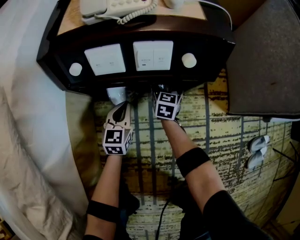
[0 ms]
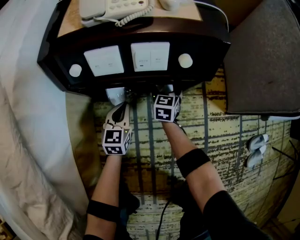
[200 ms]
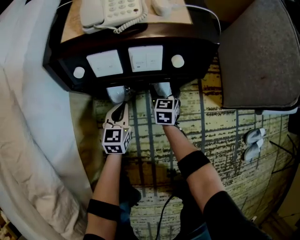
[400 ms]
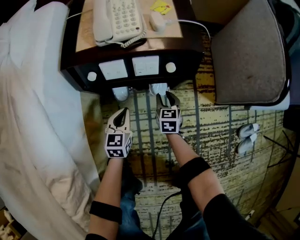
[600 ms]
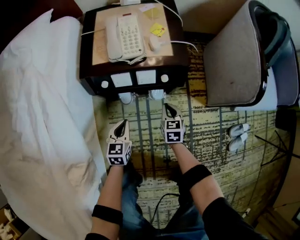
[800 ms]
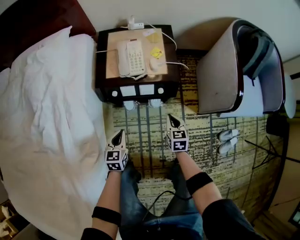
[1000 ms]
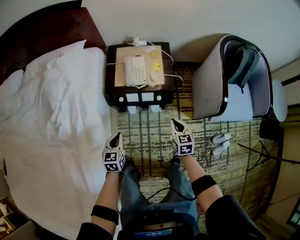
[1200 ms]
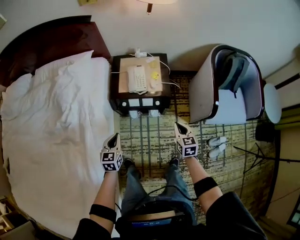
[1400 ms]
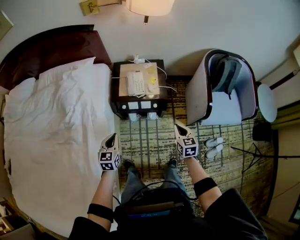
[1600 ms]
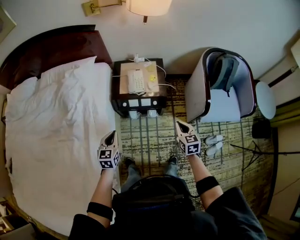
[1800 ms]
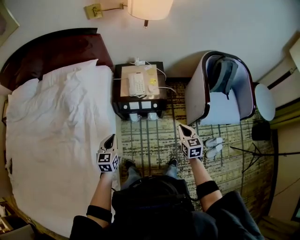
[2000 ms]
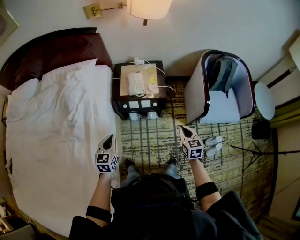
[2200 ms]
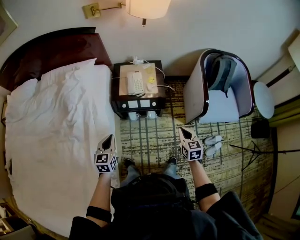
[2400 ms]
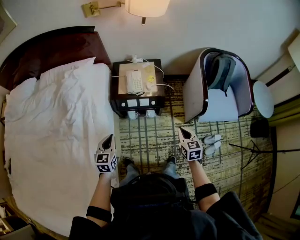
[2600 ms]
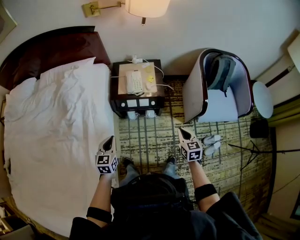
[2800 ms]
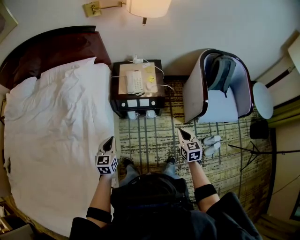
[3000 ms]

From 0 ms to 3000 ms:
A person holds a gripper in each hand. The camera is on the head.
From 0 ms to 1600 ms: Both grippers travel together upward, about 70 cm. The right gripper closes up.
From 1600 ms to 3000 ms: Both grippers move backward, some 5 cm.

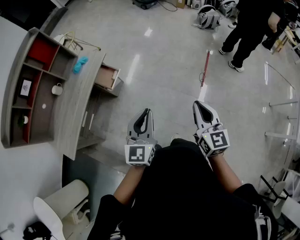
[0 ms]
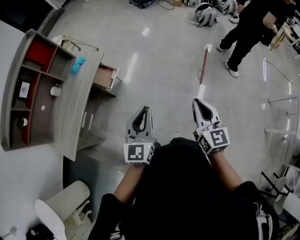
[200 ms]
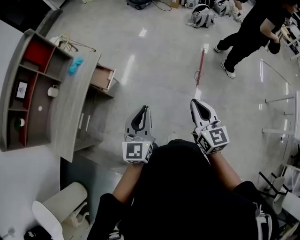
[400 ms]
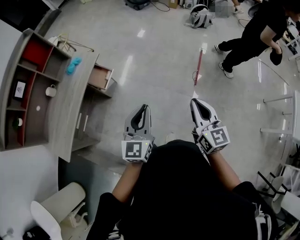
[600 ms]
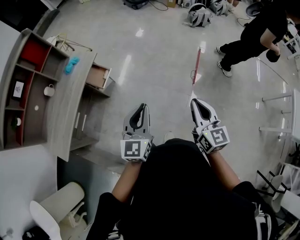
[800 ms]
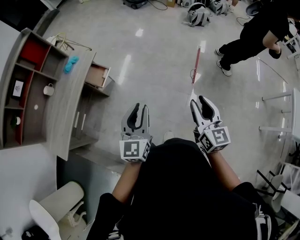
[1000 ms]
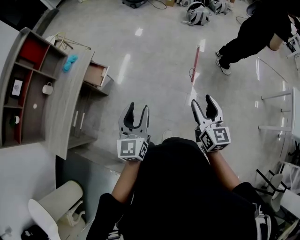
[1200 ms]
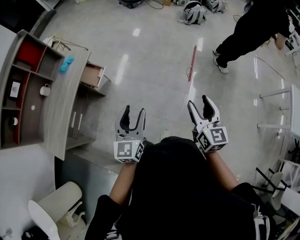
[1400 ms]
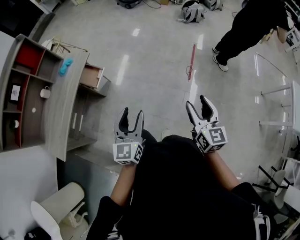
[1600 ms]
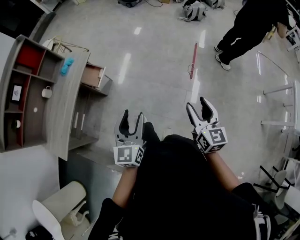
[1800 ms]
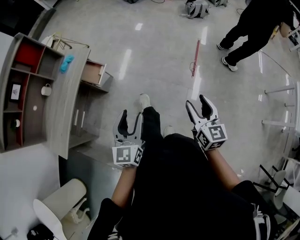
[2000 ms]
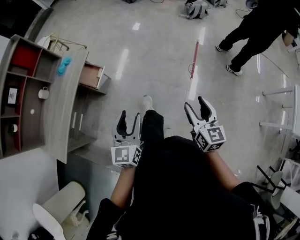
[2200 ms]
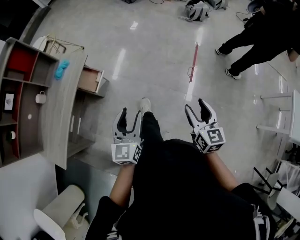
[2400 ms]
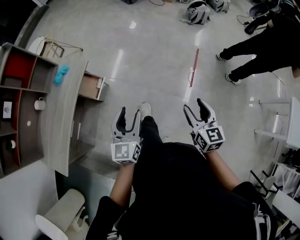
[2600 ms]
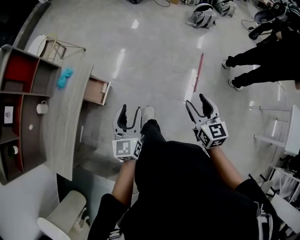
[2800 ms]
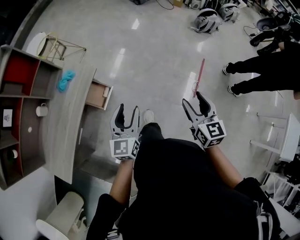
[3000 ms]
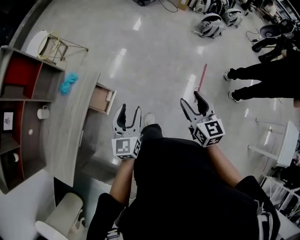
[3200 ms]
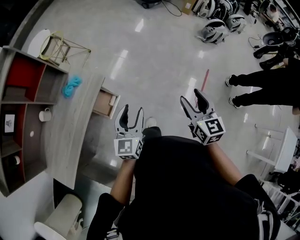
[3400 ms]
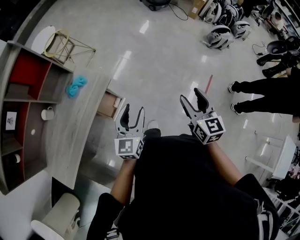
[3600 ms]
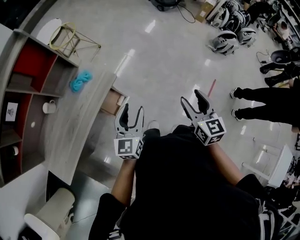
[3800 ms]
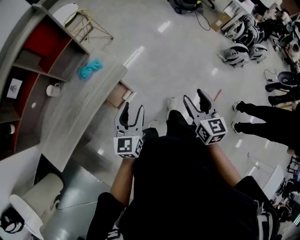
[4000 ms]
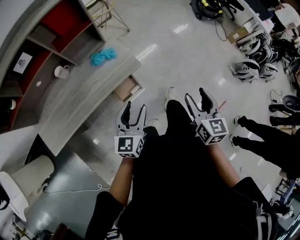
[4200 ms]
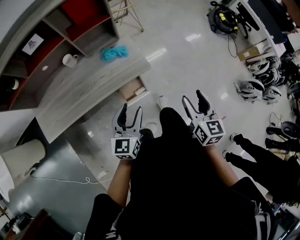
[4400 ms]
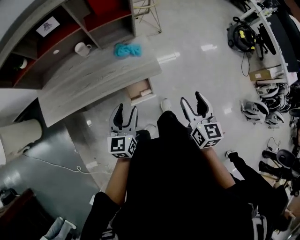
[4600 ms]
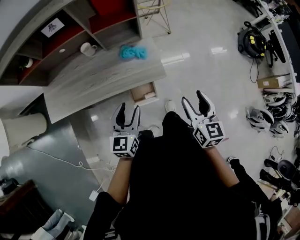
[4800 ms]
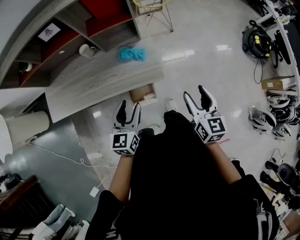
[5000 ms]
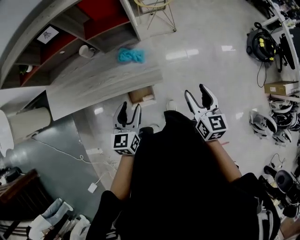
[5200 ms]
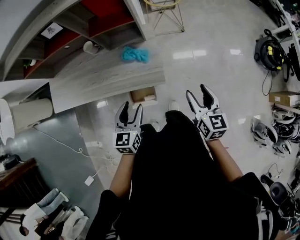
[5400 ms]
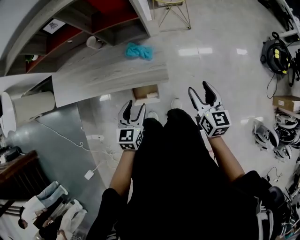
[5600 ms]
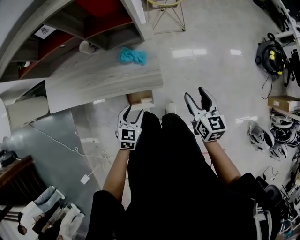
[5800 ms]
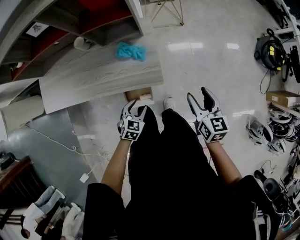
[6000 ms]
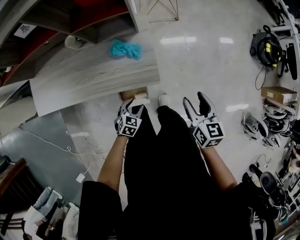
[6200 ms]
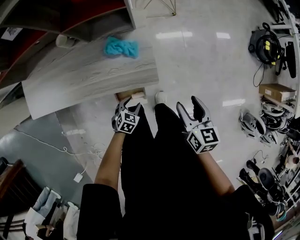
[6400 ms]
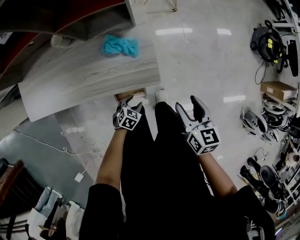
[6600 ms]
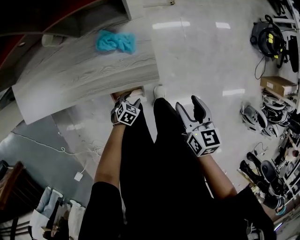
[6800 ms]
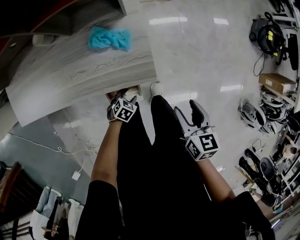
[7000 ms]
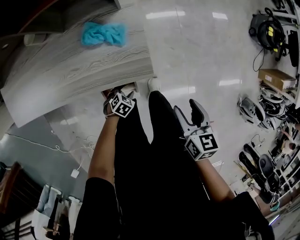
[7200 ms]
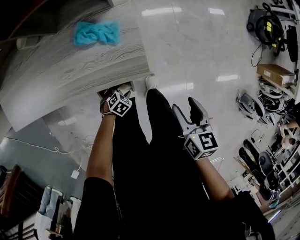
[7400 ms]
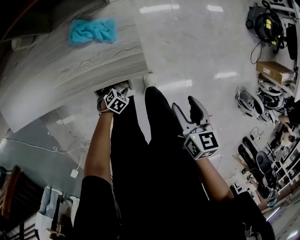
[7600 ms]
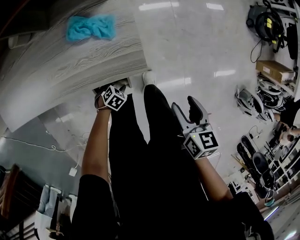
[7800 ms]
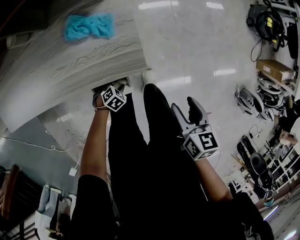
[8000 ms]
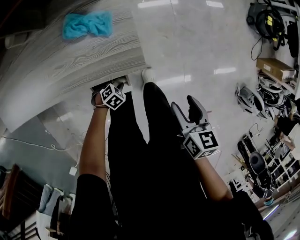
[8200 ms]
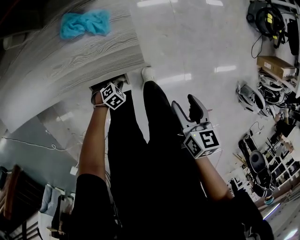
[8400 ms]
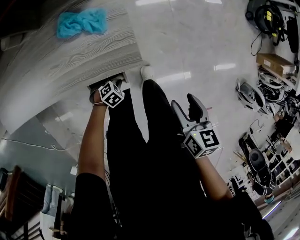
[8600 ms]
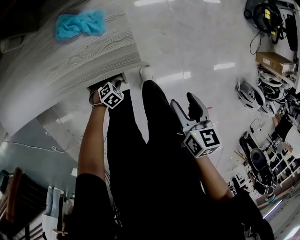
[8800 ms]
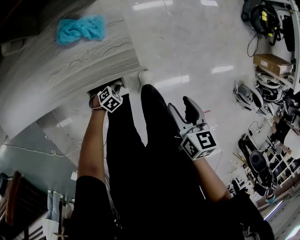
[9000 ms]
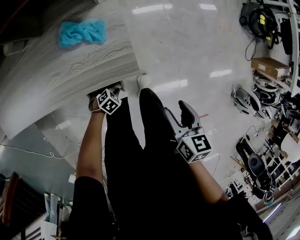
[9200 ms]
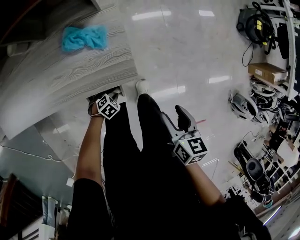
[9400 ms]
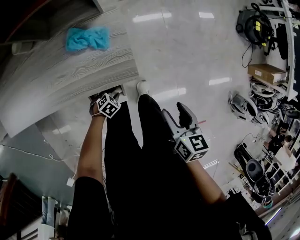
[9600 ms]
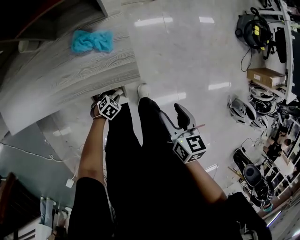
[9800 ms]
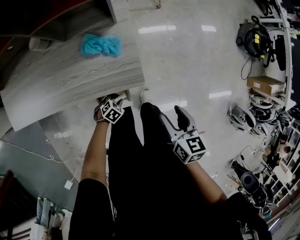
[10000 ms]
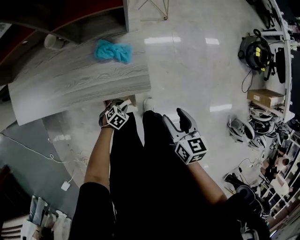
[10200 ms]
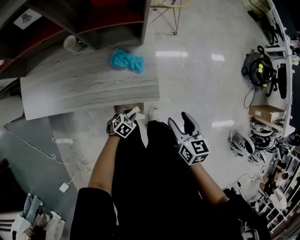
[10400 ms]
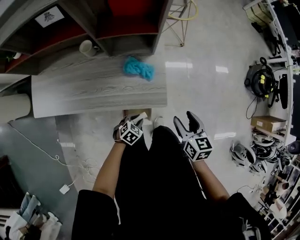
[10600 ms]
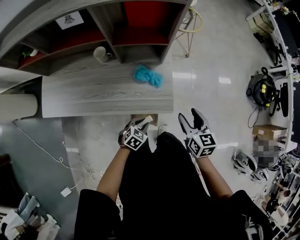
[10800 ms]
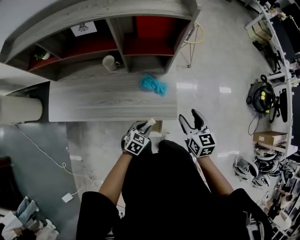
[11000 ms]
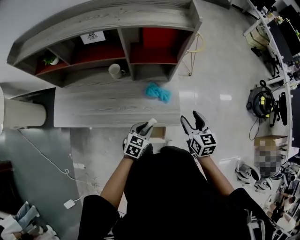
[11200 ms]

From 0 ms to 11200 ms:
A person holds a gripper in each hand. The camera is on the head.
From 0 ms to 1600 ms: The left gripper ends up approximately 5 cm from where it was, and opens. Meanwhile the right gripper travels to the right and backward by about 10 cm, and opens.
From 1600 ms to 3200 ms: The two grippers travel together, forward and to the left, some 50 cm.
From 3200 ms to 4800 ms: The left gripper moves some 25 cm, and changes its angle by some 50 degrees, while the right gripper shifts by some 40 cm, and swivels about 50 degrees.
From 4800 ms to 6400 ms: The left gripper goes approximately 35 cm downward, and points its fingers roughly 40 degrees further downward; the right gripper goes about 20 cm downward and forward.
From 6400 ms to 8000 ms: The right gripper heads downward, covering about 15 cm; the left gripper shifts some 20 cm downward, and swivels about 30 degrees.
From 8000 ms to 9600 ms: The left gripper closes its fingers.
From 9600 ms to 11200 ms: The left gripper is displaced upward by about 40 cm, and tilts its fingers some 30 degrees upward, while the right gripper heads upward, covering some 20 cm, and rotates some 30 degrees.

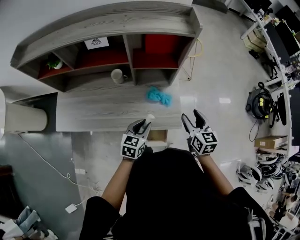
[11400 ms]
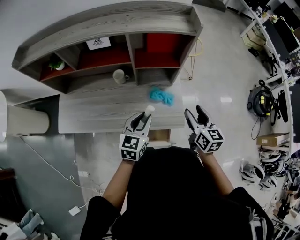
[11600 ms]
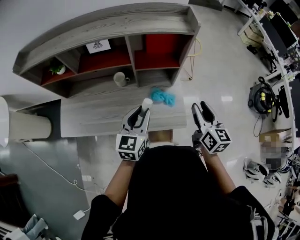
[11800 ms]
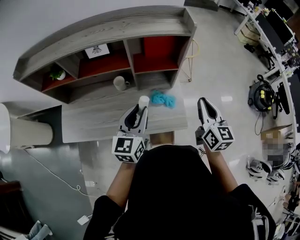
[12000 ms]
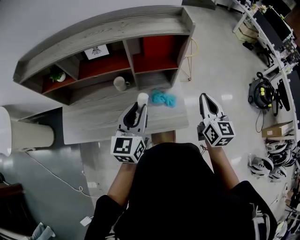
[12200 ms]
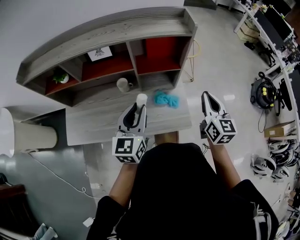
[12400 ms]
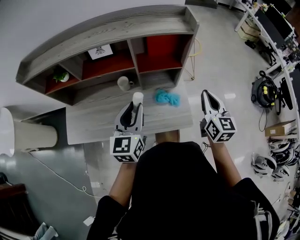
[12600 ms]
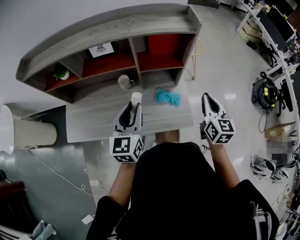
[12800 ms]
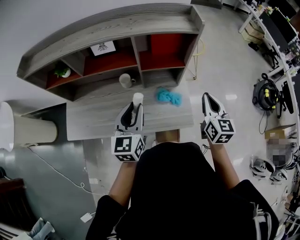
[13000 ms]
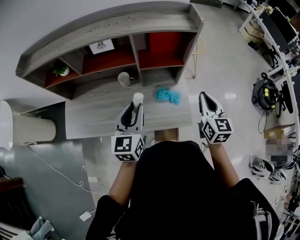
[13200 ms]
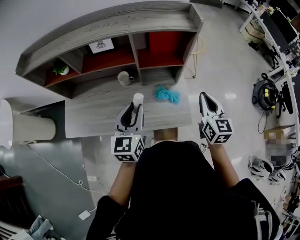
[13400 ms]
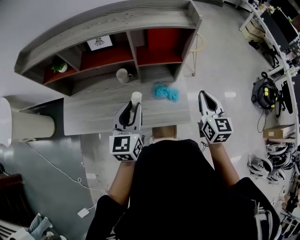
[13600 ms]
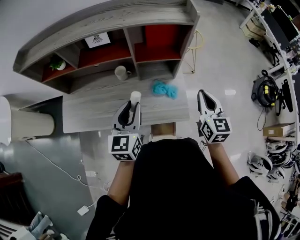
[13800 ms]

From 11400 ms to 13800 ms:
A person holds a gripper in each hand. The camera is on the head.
From 11400 ms to 12600 ms: The left gripper heads upward and to the left, covering roughly 20 cm, and rotates approximately 30 degrees; the right gripper moves upward, approximately 10 cm, and closes.
From 12600 ms to 13800 ms: The grippers move only a little.

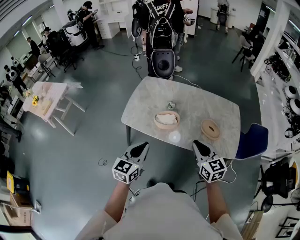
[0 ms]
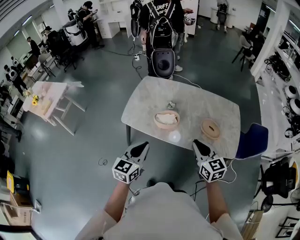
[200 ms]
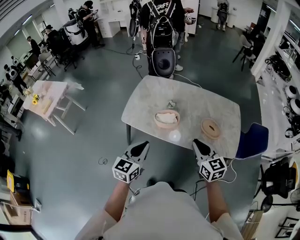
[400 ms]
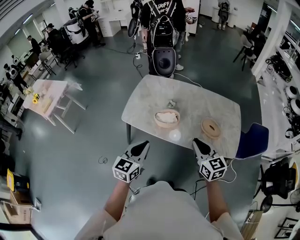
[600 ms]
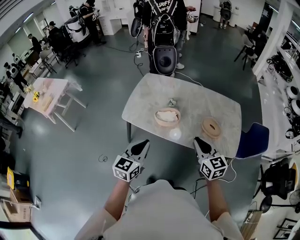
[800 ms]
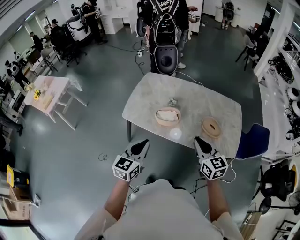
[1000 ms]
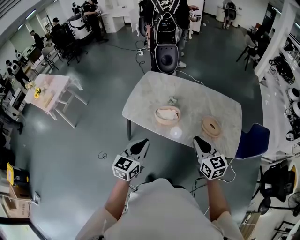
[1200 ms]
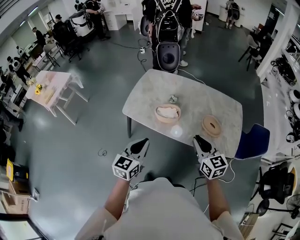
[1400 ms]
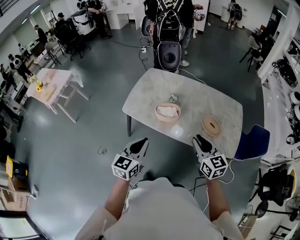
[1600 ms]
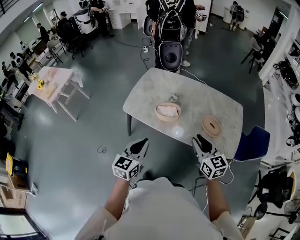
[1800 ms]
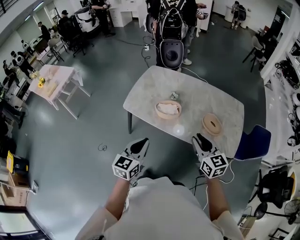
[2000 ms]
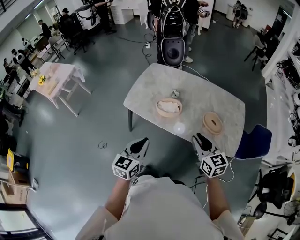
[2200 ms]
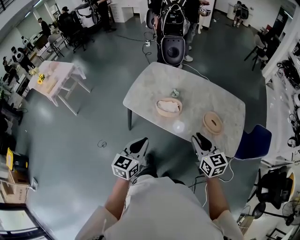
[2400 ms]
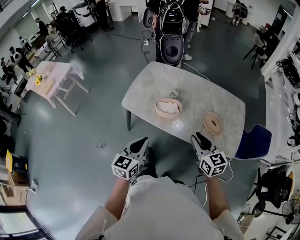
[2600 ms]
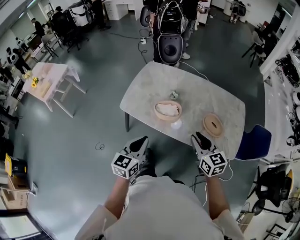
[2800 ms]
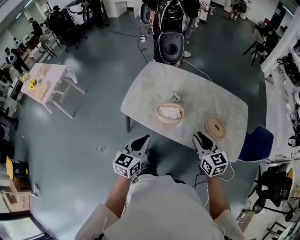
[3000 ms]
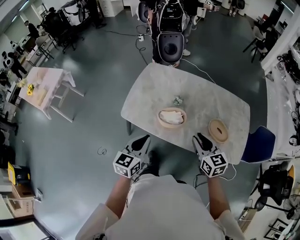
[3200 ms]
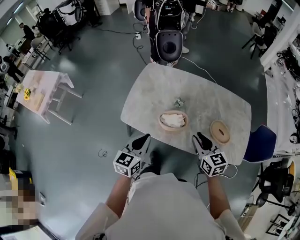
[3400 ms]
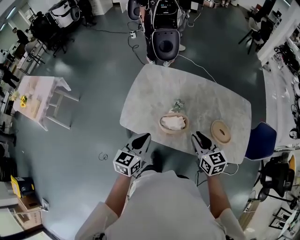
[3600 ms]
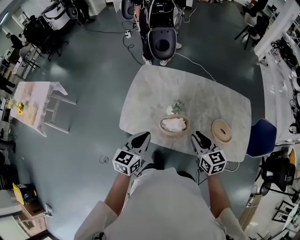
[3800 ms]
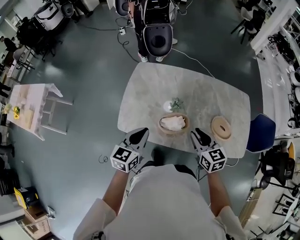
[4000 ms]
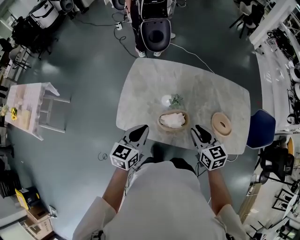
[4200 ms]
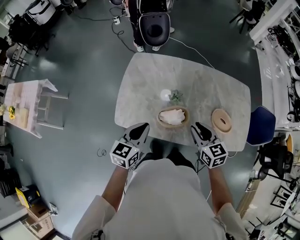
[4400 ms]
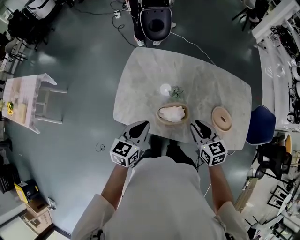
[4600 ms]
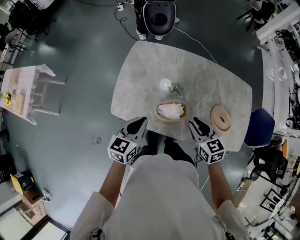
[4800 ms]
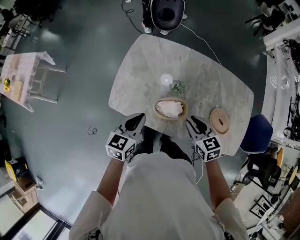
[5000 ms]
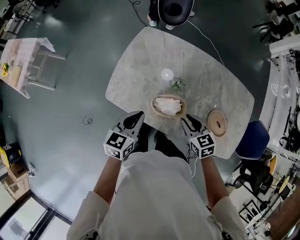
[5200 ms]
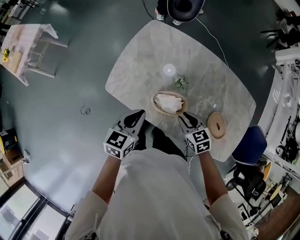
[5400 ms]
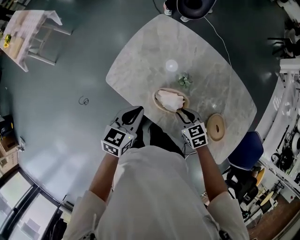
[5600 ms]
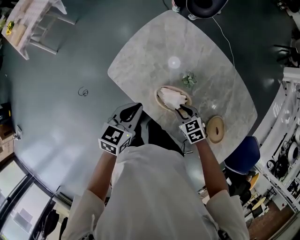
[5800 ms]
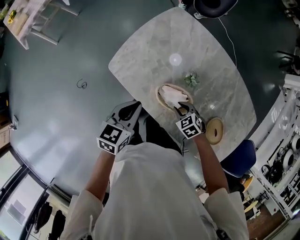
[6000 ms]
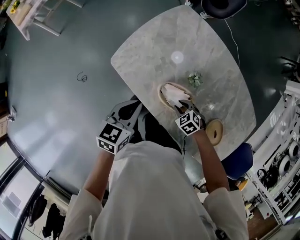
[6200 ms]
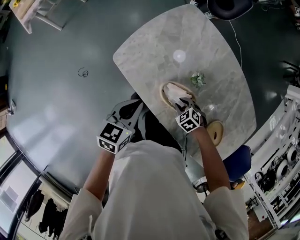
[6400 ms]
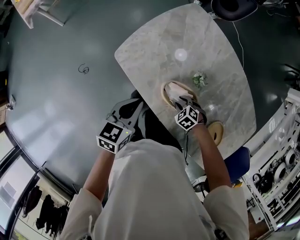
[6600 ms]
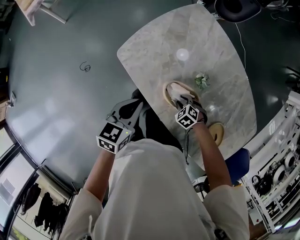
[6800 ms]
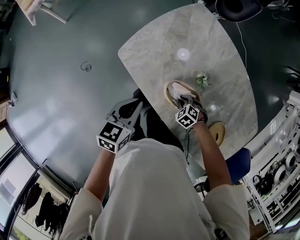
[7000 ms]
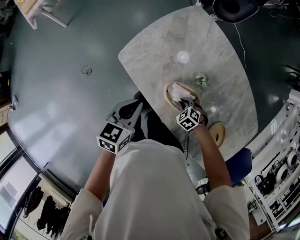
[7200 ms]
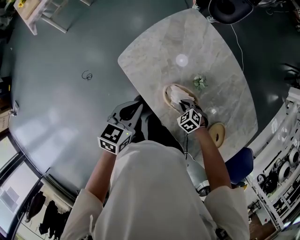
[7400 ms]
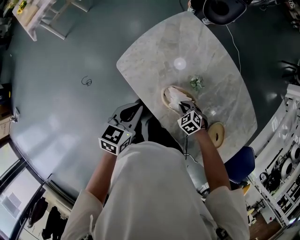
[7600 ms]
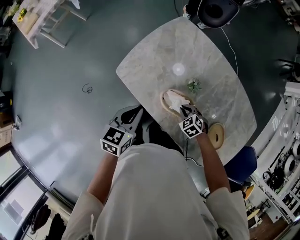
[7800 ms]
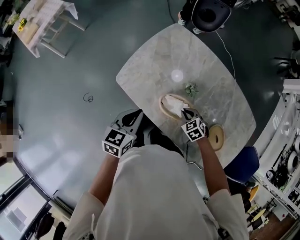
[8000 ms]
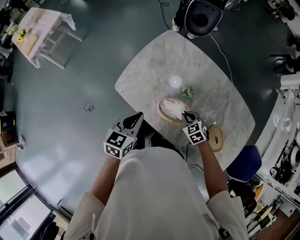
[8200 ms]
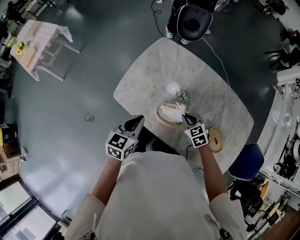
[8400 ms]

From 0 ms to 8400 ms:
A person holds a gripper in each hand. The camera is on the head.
From 0 ms to 1400 ms: The grippers move only a little.
From 1400 ms to 2800 ms: The right gripper moves forward, approximately 5 cm. Meanwhile the left gripper moves about 5 cm.
From 2800 ms to 4200 ms: The left gripper moves forward, approximately 25 cm. Meanwhile the right gripper moves forward and to the left, approximately 20 cm.
From 4200 ms to 5600 ms: The right gripper moves downward, roughly 20 cm, and rotates some 40 degrees, while the left gripper shifts some 10 cm downward, and changes its angle by approximately 20 degrees.
From 5600 ms to 7000 ms: The left gripper shifts by roughly 10 cm; the right gripper shifts some 20 cm downward, and swivels some 50 degrees.
From 7000 ms to 8400 ms: The right gripper travels upward by about 20 cm, and swivels some 40 degrees. Meanwhile the left gripper moves upward, some 10 cm.
